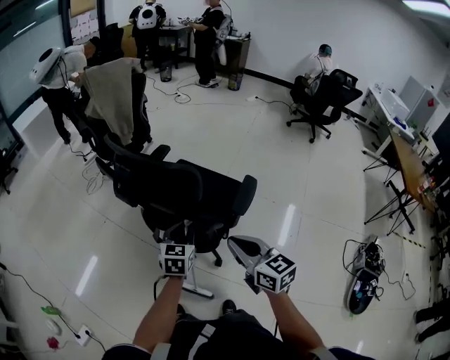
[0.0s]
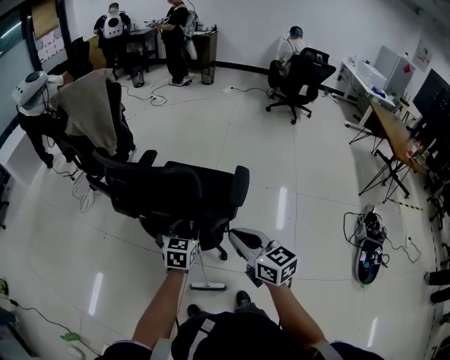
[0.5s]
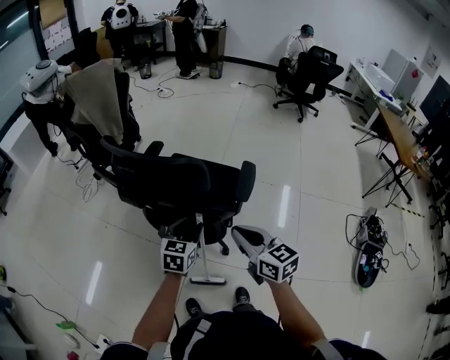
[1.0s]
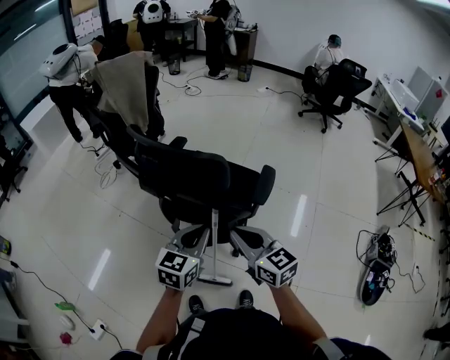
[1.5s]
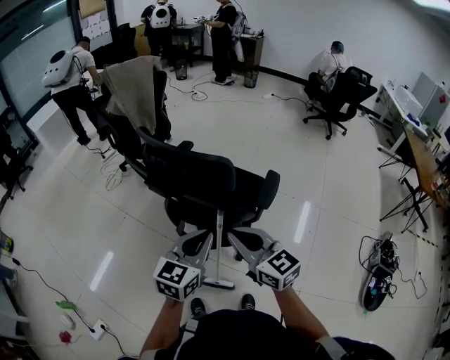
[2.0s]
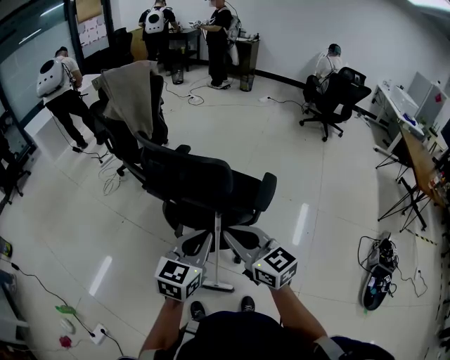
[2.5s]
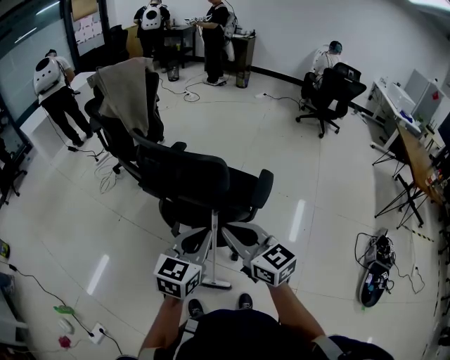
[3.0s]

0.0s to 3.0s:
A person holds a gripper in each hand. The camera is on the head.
0.0s to 1.5s: The left gripper heads upward and backward, covering about 10 cm, and closes up. The right gripper moves to the left, about 5 cm.
1.5s to 3.0s: The left gripper moves about 5 cm. The right gripper shifts some 5 cm upward.

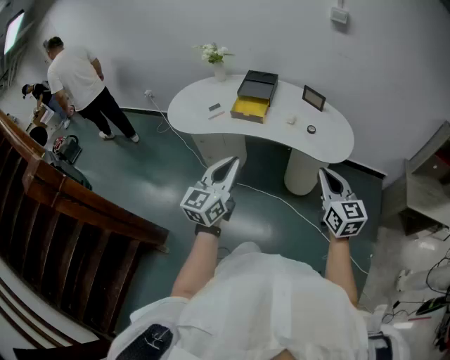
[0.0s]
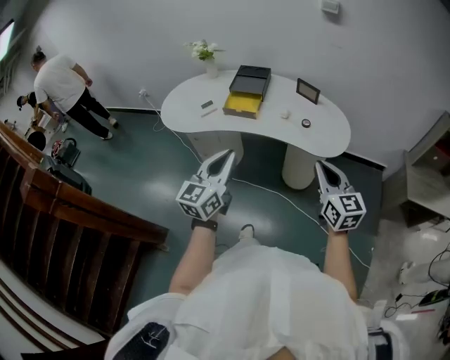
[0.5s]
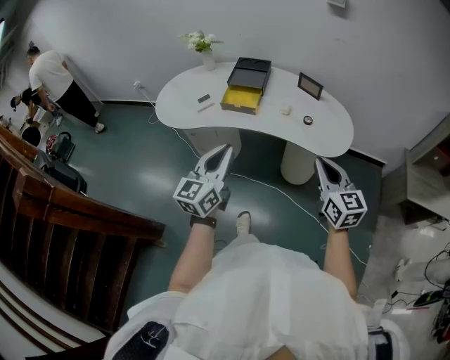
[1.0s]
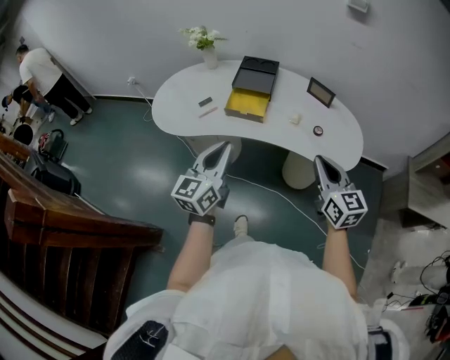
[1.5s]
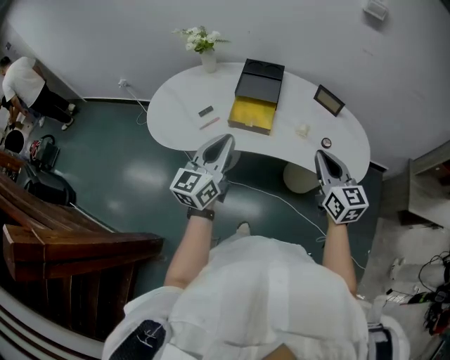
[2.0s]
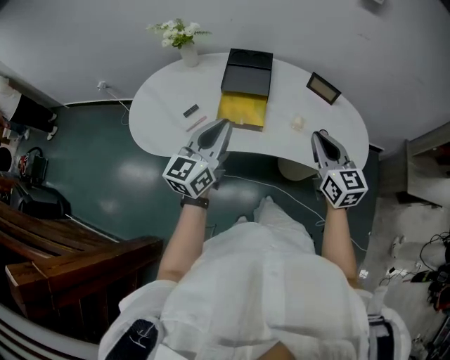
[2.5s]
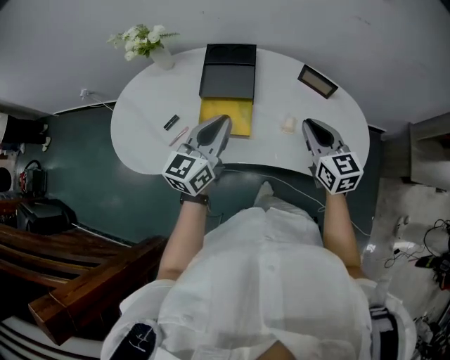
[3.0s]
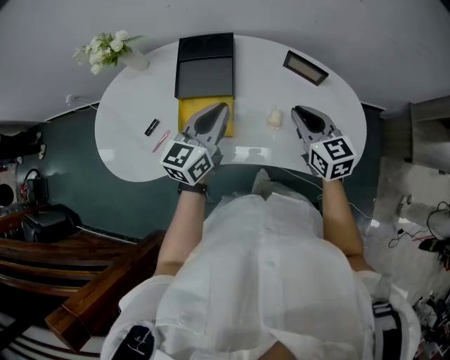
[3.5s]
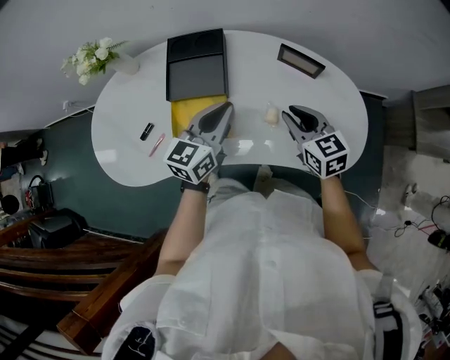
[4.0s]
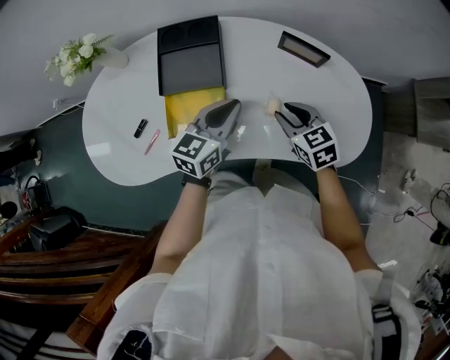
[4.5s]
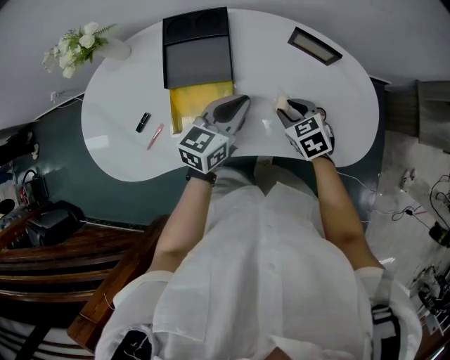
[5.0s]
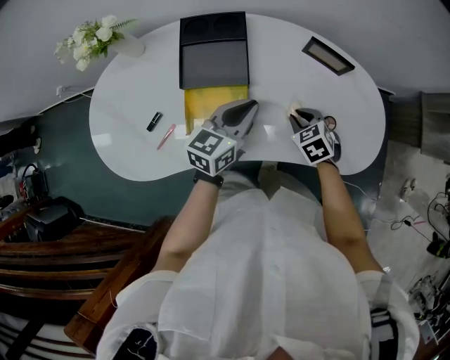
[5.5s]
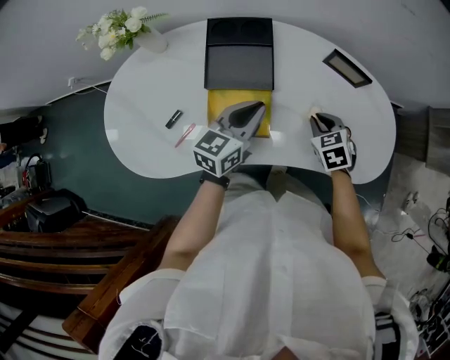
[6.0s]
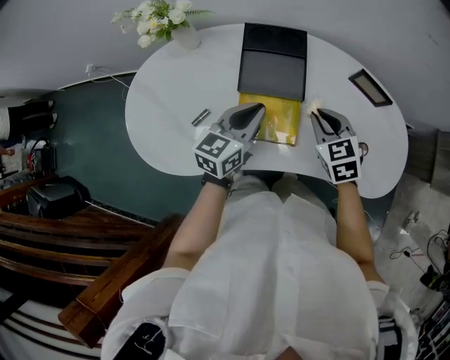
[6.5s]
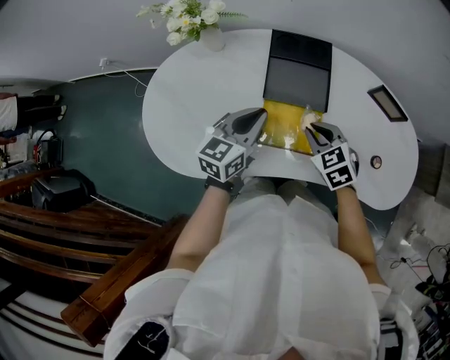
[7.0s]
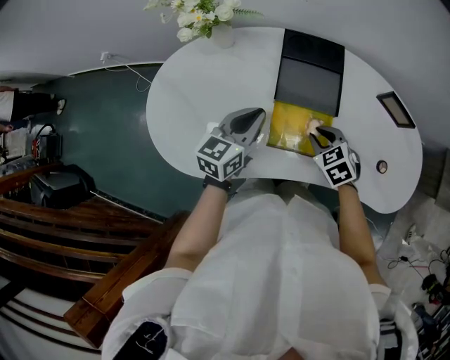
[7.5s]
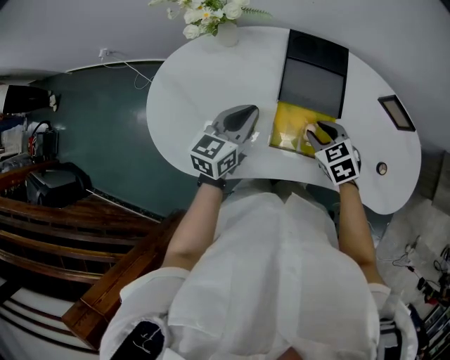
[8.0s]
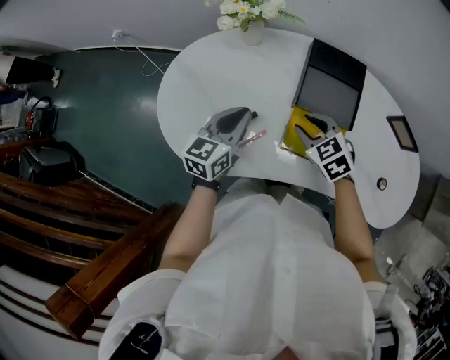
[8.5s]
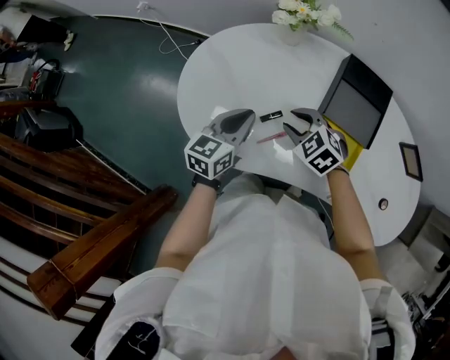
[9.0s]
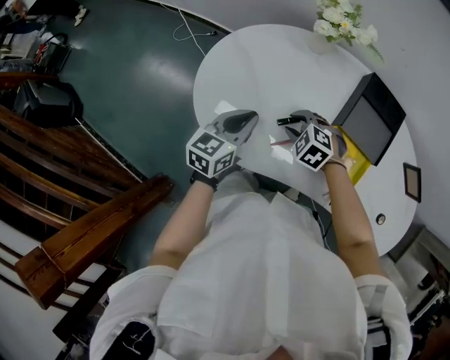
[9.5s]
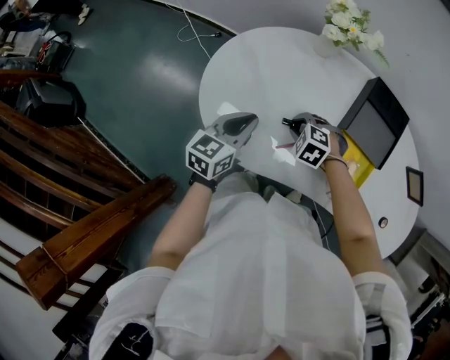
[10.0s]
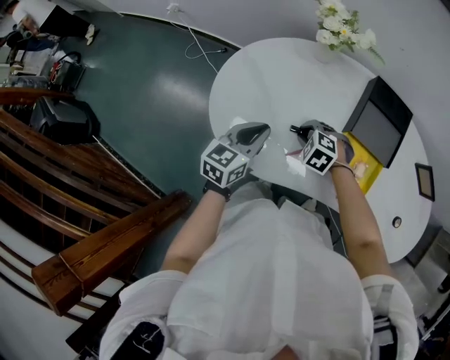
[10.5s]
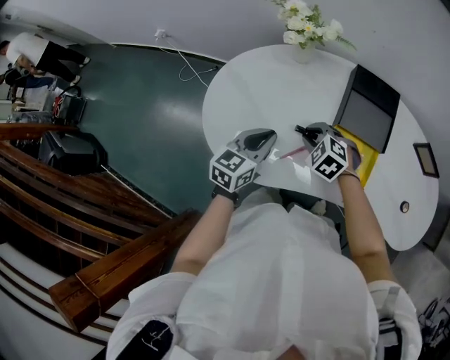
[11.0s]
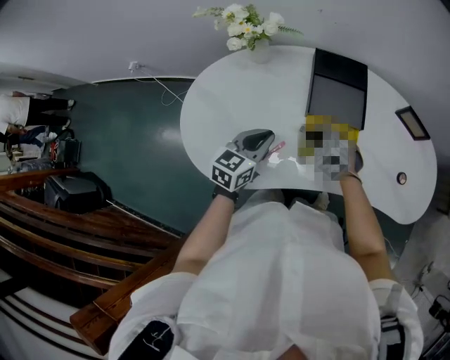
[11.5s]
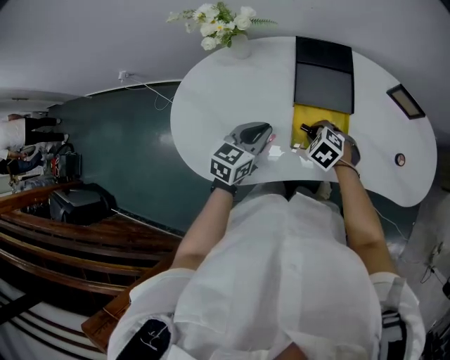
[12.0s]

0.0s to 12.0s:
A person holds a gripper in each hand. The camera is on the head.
0.0s to 2.0s: The grippers both shift forward by approximately 25 cm.
2.0s to 4.0s: The left gripper goes about 30 cm forward and to the right, and swivels some 20 degrees. Meanwhile the right gripper moves forward and downward, roughly 25 cm.
4.0s to 6.0s: The left gripper travels to the left by some 5 cm; the right gripper goes about 10 cm downward, and changes its angle by about 30 degrees.
6.0s to 8.0s: The grippers both shift to the left by some 20 cm.
8.0s to 10.0s: Both grippers move to the left, some 25 cm. The right gripper twists roughly 50 degrees counterclockwise, seen from behind.
10.0s to 12.0s: The left gripper shifts by roughly 20 cm, and swivels about 30 degrees. The right gripper changes place by approximately 20 cm, and changes its angle by roughly 40 degrees.

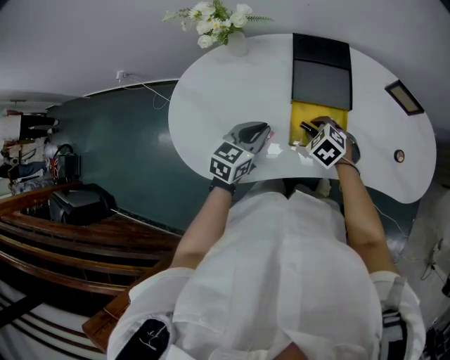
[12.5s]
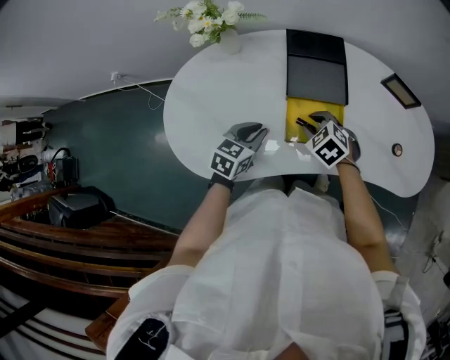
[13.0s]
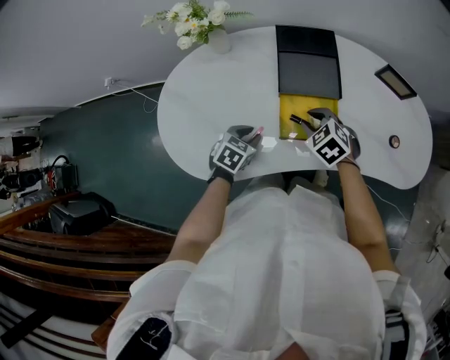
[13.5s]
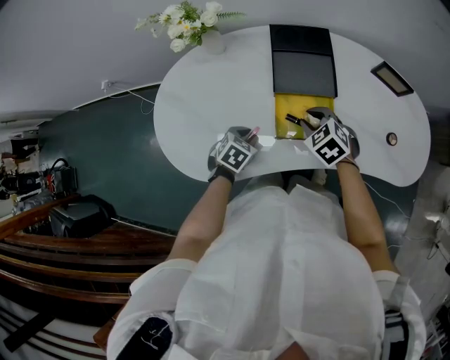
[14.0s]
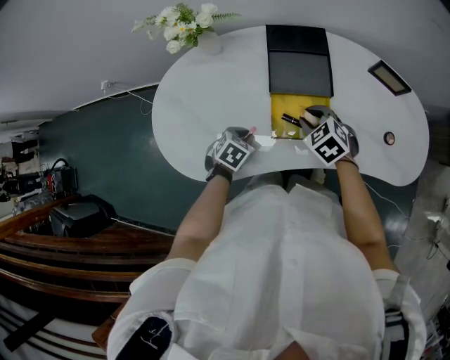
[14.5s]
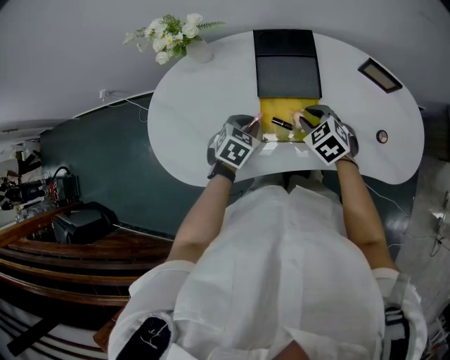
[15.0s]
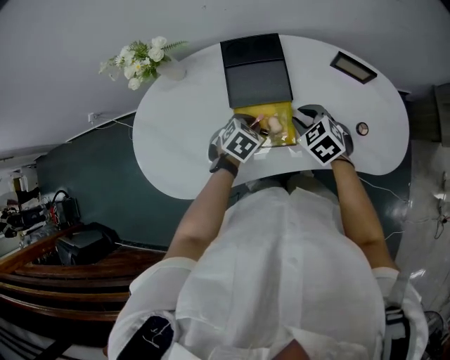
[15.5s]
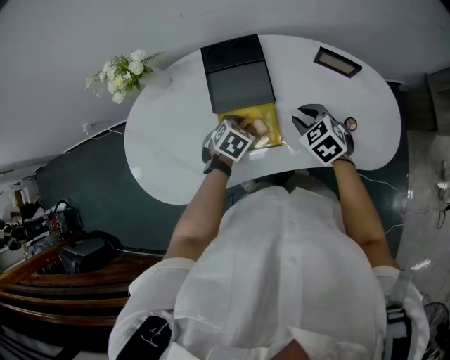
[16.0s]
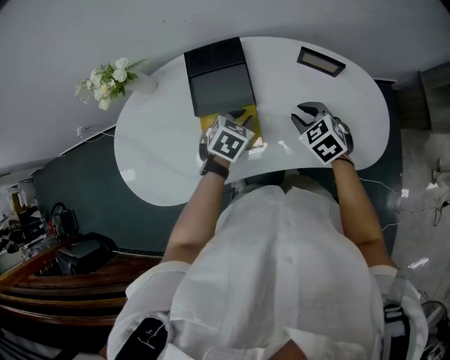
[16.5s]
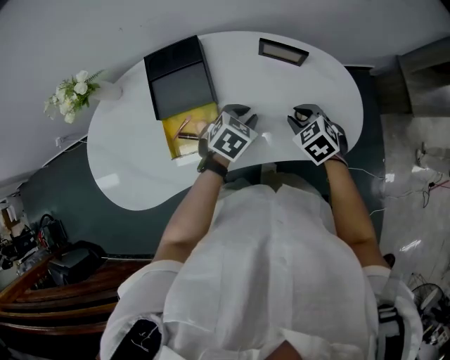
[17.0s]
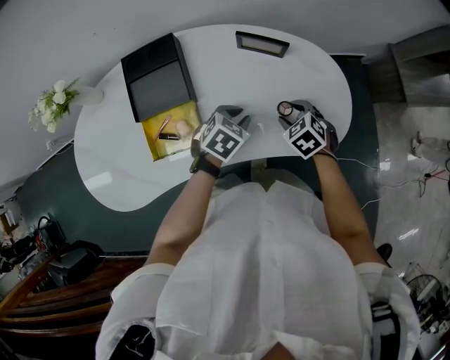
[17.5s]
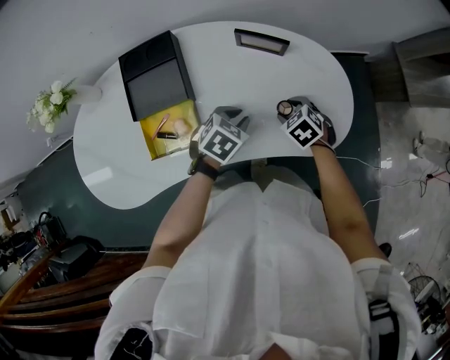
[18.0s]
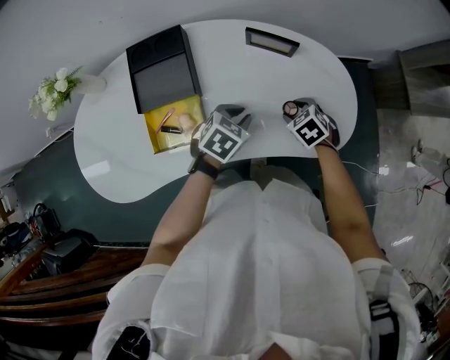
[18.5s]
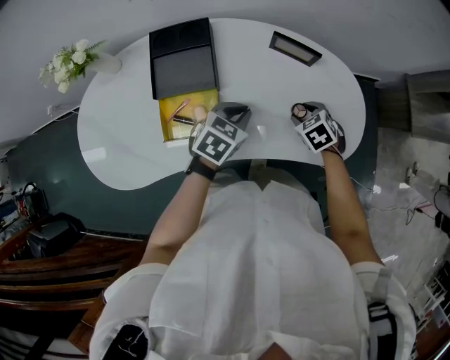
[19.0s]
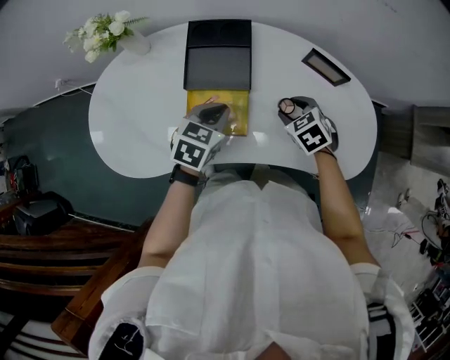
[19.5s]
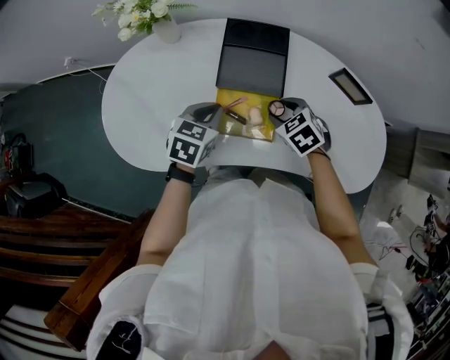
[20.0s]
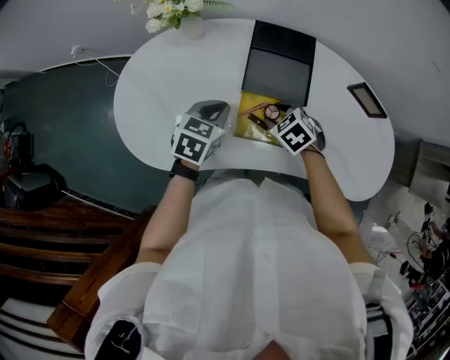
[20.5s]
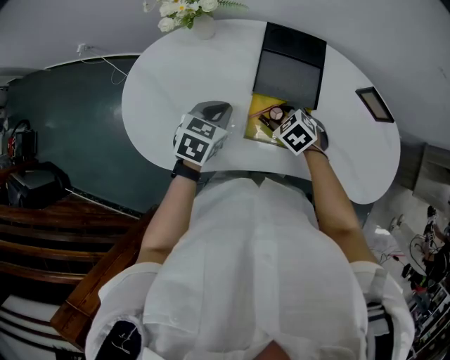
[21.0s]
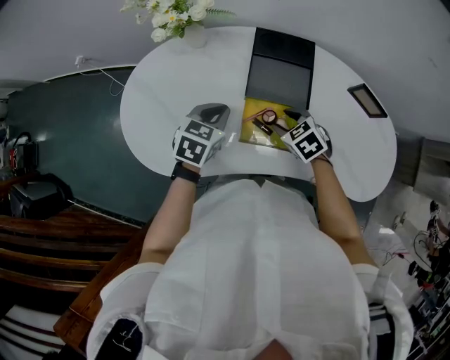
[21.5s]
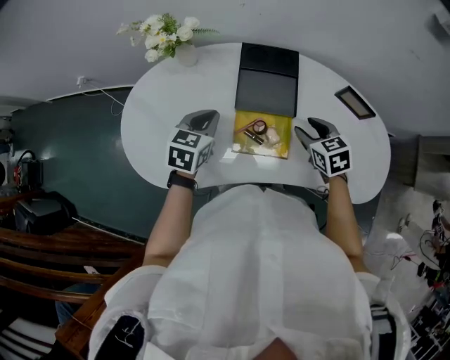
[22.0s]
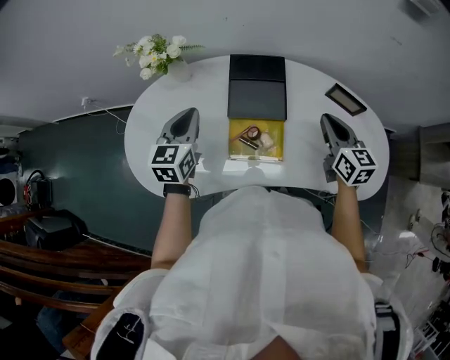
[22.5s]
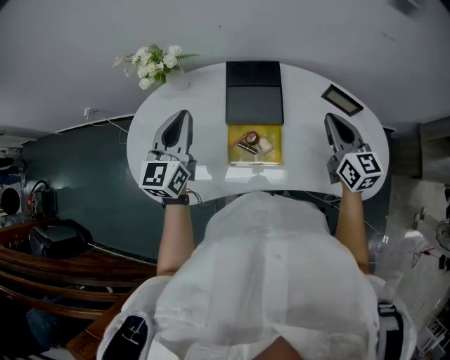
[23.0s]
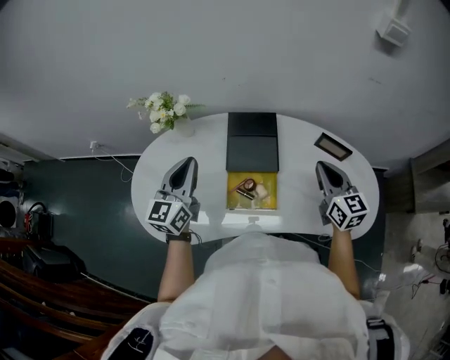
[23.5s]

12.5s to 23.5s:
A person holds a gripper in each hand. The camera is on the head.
12.5s to 14.5s: The right gripper changes place by approximately 5 cm; the left gripper is displaced downward by roughly 15 cm, and tilts its fingers roughly 40 degrees downward.
14.5s to 16.0s: The left gripper shifts approximately 20 cm to the right and forward; the right gripper travels to the right by approximately 15 cm.
16.0s to 18.0s: The left gripper shifts approximately 25 cm to the right. Meanwhile the right gripper is displaced to the right and downward by roughly 25 cm, and opens.
18.0s to 20.0s: The left gripper ends up approximately 30 cm from where it was, and changes its angle by roughly 40 degrees, while the right gripper ends up some 30 cm from where it was, and turns by roughly 20 degrees.
20.0s to 21.5s: Both grippers move to the left, roughly 5 cm.
21.5s to 23.5s: The left gripper moves upward, some 20 cm, and tips its fingers upward by roughly 40 degrees; the right gripper heads upward and to the right, covering roughly 30 cm, angles its fingers upward, by approximately 50 degrees, and closes its fingers.
